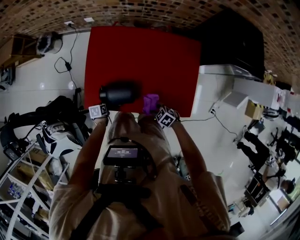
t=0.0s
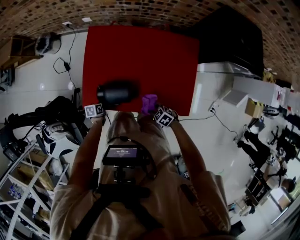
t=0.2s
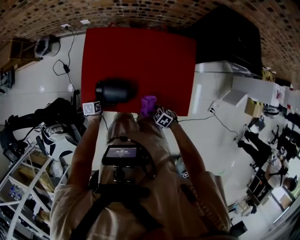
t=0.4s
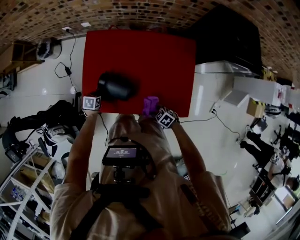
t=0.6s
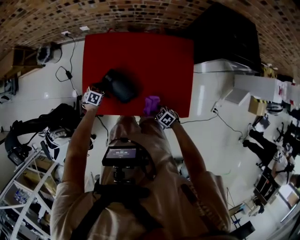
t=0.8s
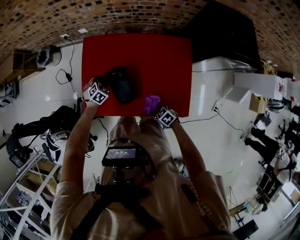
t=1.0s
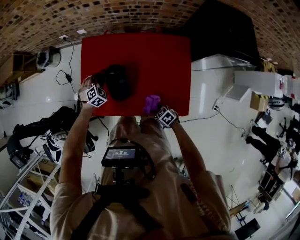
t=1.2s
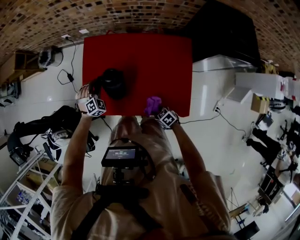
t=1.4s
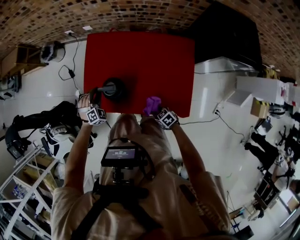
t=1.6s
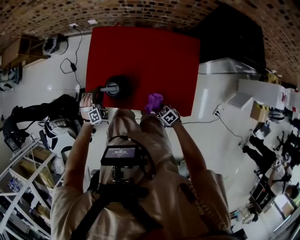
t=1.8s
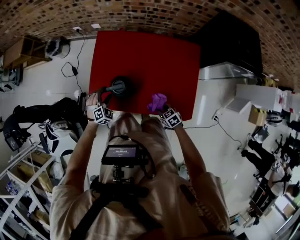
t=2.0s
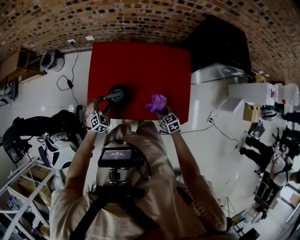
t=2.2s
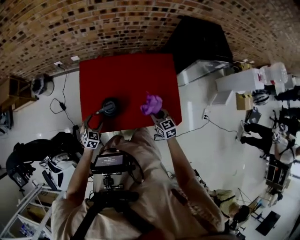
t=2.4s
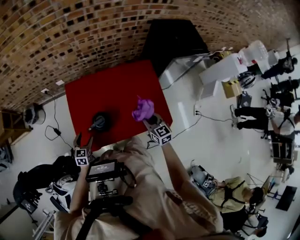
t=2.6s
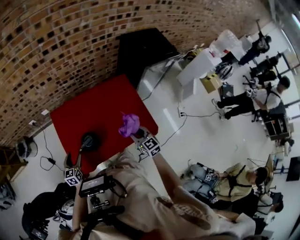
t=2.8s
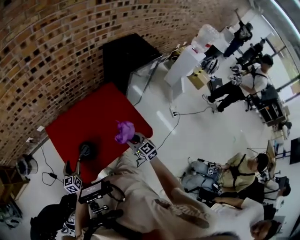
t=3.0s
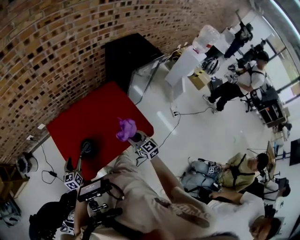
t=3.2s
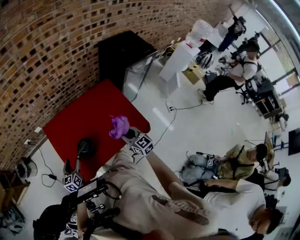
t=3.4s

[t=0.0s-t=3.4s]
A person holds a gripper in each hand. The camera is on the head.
t=0.0s to t=1.6s: The left gripper is displaced upward by about 15 cm, and rotates around the line of its fingers by approximately 90 degrees, clockwise from behind.
t=1.6s to t=3.4s: The left gripper is displaced upward by some 10 cm, rolls counterclockwise, seen from behind, by roughly 60 degrees, and opens its fingers, while the right gripper is displaced upward by some 30 cm, and tilts its fingers roughly 40 degrees upward.

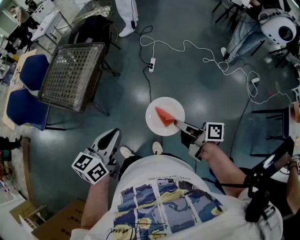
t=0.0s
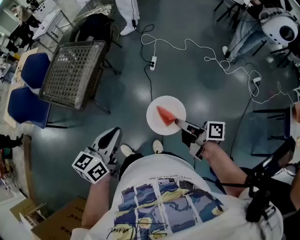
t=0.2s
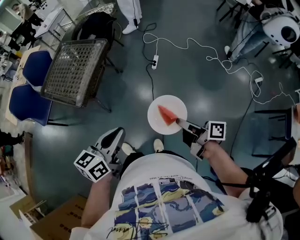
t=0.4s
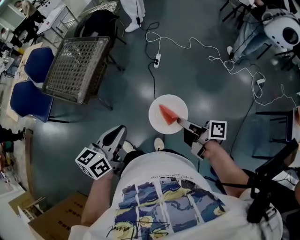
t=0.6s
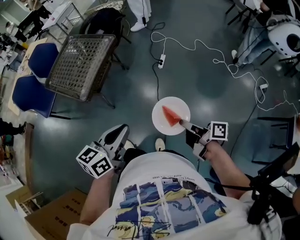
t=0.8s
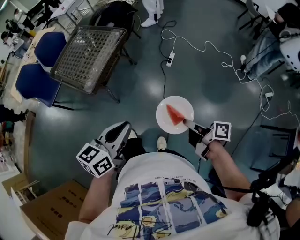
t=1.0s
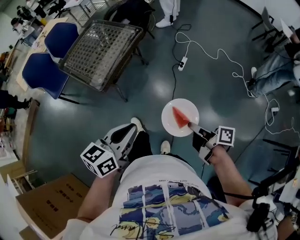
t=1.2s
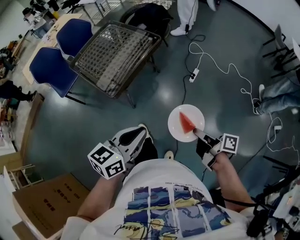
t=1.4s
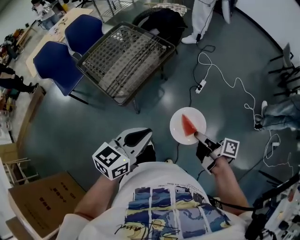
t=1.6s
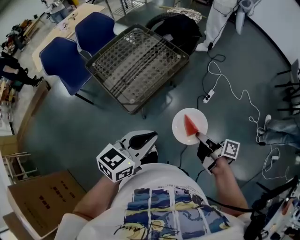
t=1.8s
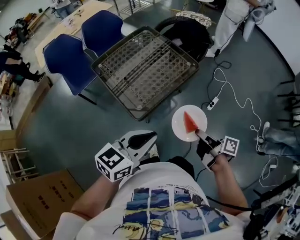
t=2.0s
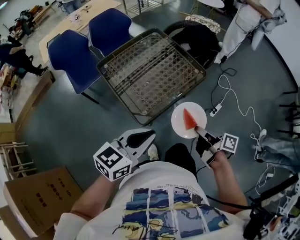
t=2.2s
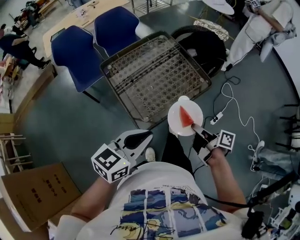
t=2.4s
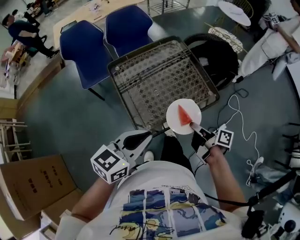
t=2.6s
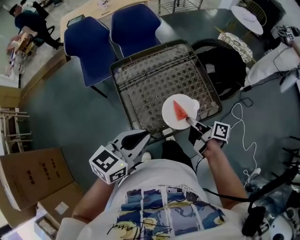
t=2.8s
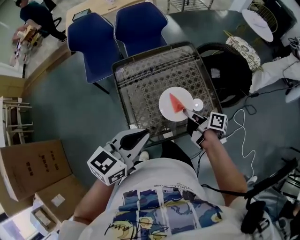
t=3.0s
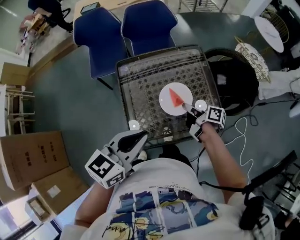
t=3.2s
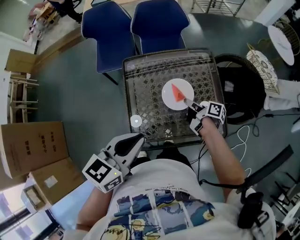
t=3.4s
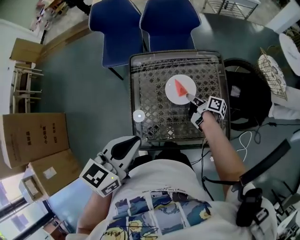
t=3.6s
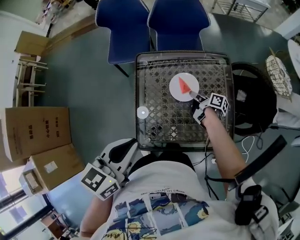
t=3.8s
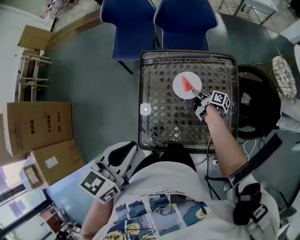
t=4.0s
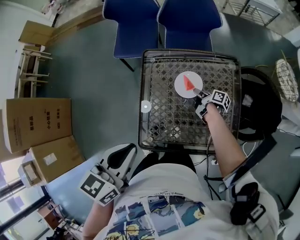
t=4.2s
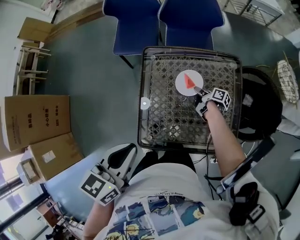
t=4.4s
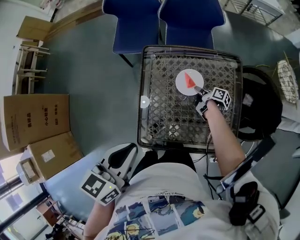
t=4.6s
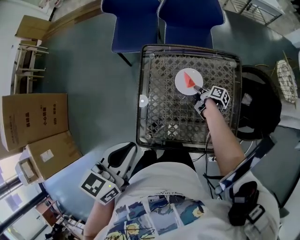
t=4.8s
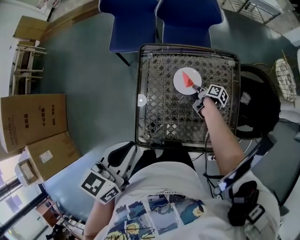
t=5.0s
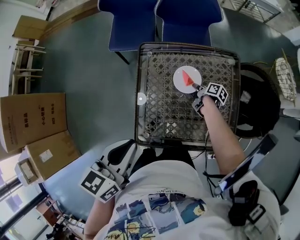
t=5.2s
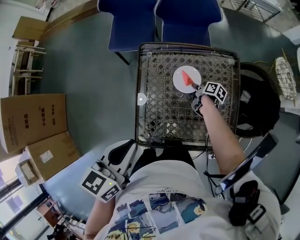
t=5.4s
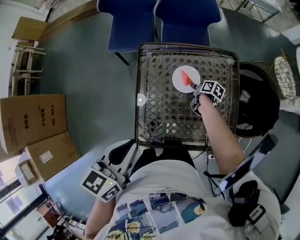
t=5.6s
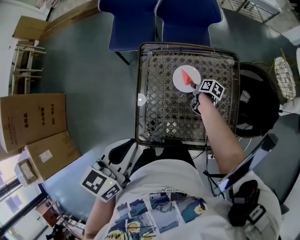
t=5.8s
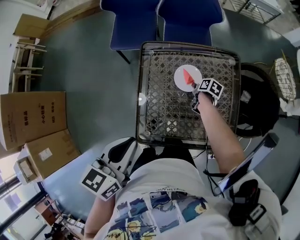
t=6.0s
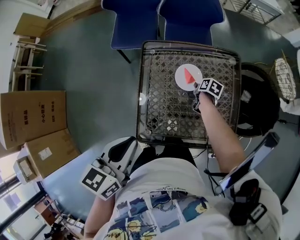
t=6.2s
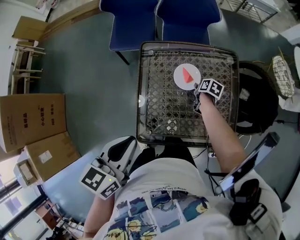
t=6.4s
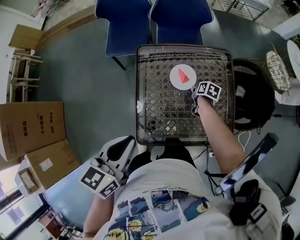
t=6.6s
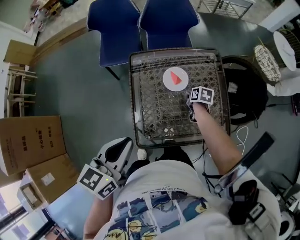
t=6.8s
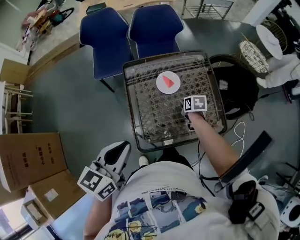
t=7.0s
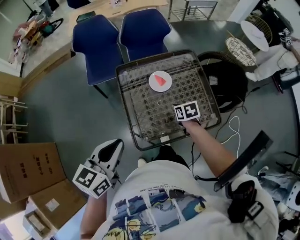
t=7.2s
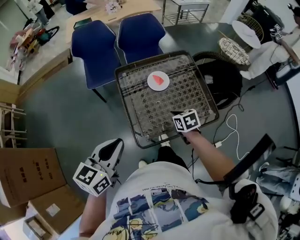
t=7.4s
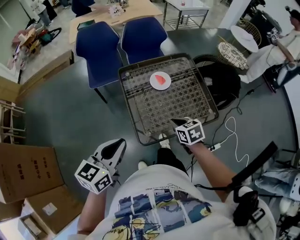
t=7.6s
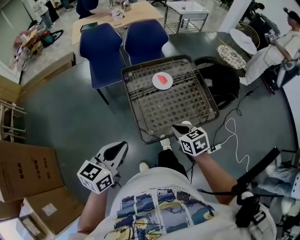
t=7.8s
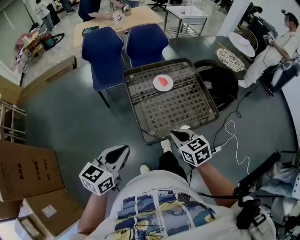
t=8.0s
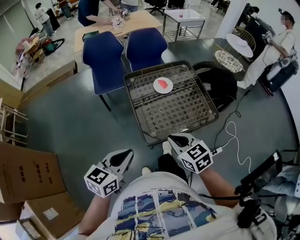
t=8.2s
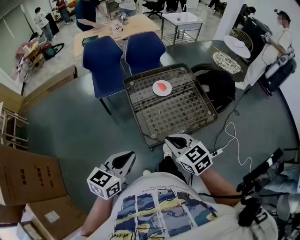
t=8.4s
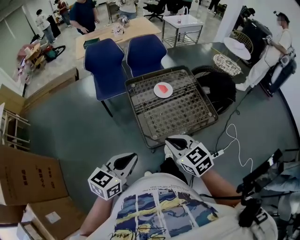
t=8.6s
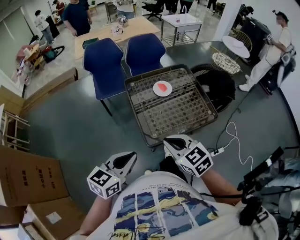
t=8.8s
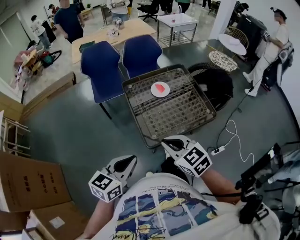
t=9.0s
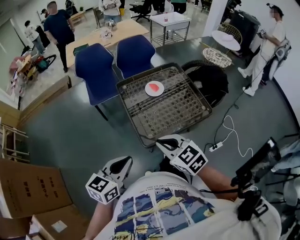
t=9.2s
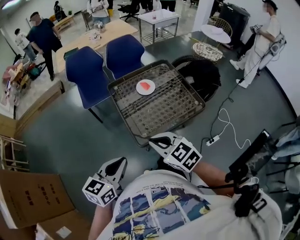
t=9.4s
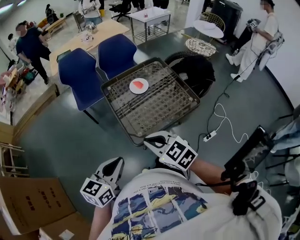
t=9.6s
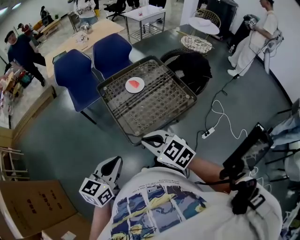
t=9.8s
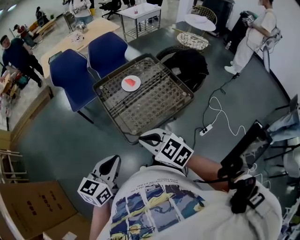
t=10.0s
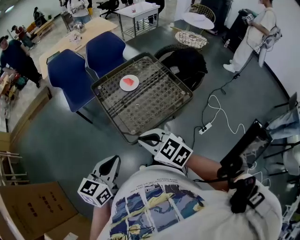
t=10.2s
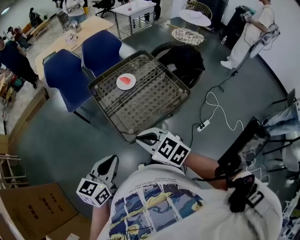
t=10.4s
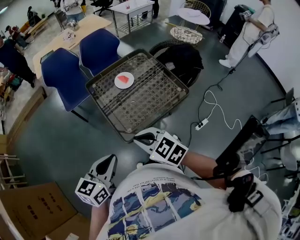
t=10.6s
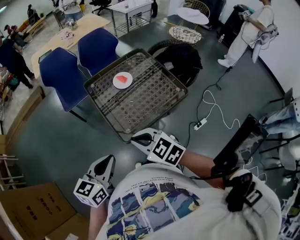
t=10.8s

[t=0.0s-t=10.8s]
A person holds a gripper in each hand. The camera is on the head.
t=0.0s to t=1.6s: The grippers both shift forward and to the left by some 20 cm.
t=1.6s to t=3.0s: The two grippers travel together, roughly 50 cm. The left gripper swivels roughly 30 degrees. The right gripper swivels approximately 40 degrees.
t=3.0s to t=4.6s: The left gripper moves to the left, some 5 cm, and rotates about 40 degrees; the right gripper goes some 30 cm forward and downward, and rotates some 20 degrees.
t=4.6s to t=6.2s: The right gripper turns by some 40 degrees, and opens.
t=6.2s to t=7.8s: The left gripper moves backward and to the left, some 20 cm, and swivels roughly 30 degrees; the right gripper is displaced backward, upward and to the left by approximately 50 cm, swivels some 40 degrees, and closes up.
t=7.8s to t=9.2s: The left gripper moves backward, about 5 cm. Meanwhile the right gripper goes about 15 cm upward, backward and to the left, and changes its angle by roughly 20 degrees.
t=9.2s to t=10.8s: The grippers make only small movements.

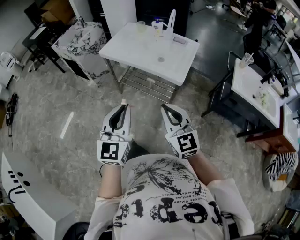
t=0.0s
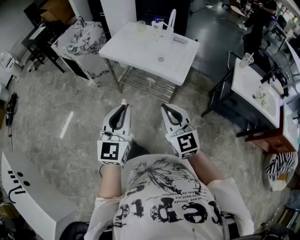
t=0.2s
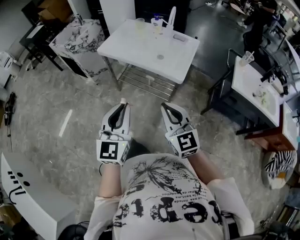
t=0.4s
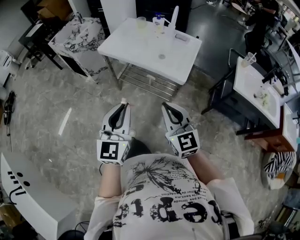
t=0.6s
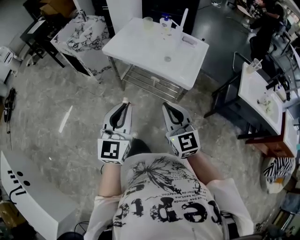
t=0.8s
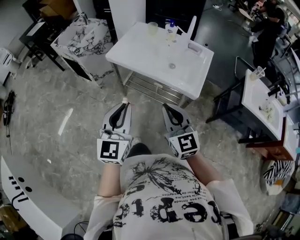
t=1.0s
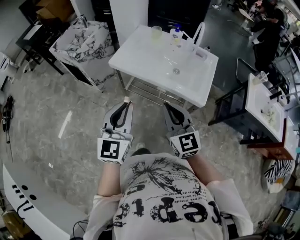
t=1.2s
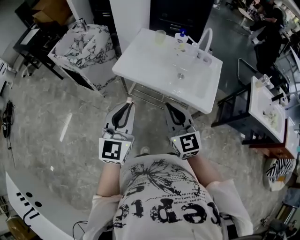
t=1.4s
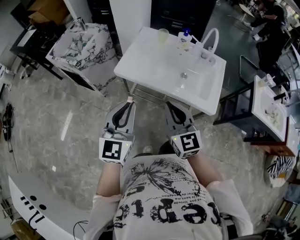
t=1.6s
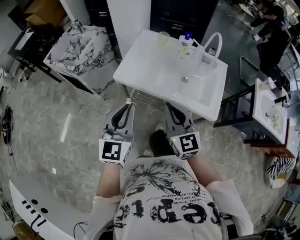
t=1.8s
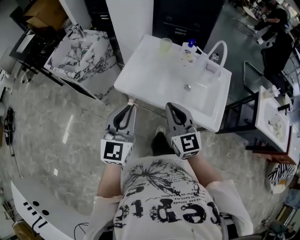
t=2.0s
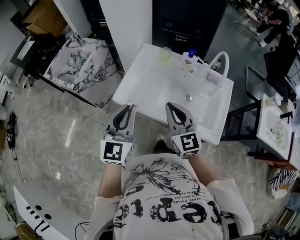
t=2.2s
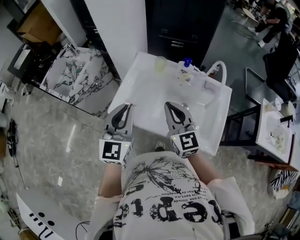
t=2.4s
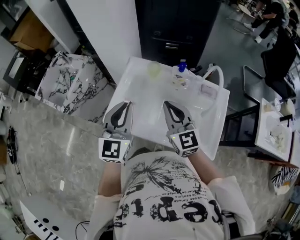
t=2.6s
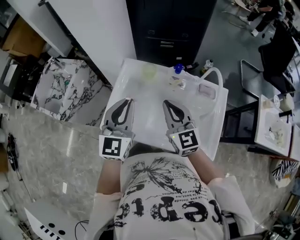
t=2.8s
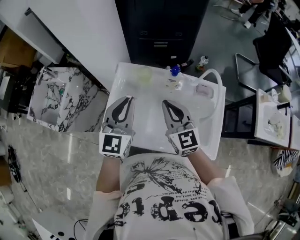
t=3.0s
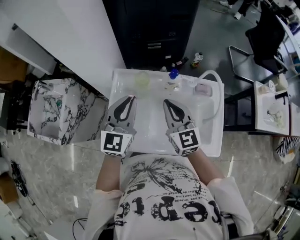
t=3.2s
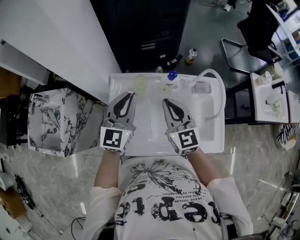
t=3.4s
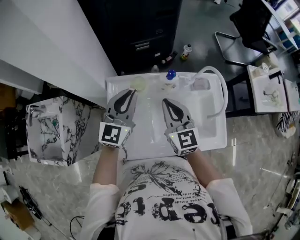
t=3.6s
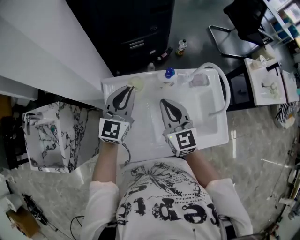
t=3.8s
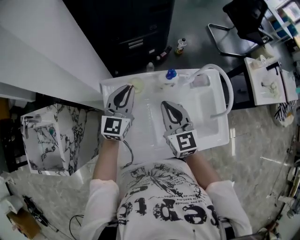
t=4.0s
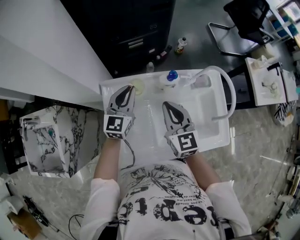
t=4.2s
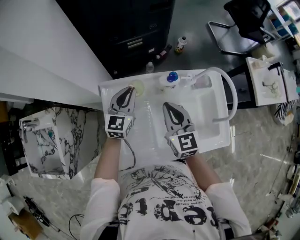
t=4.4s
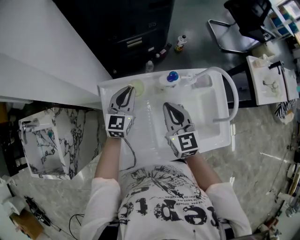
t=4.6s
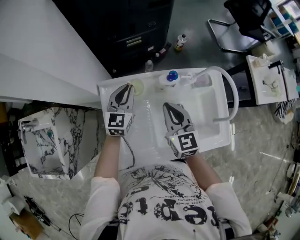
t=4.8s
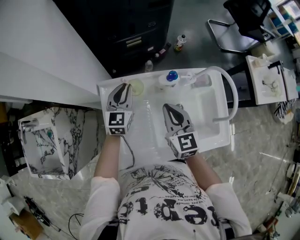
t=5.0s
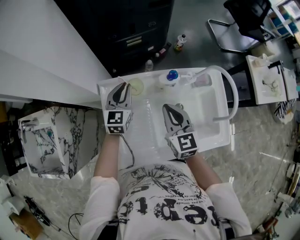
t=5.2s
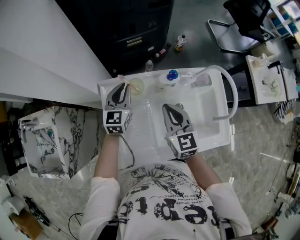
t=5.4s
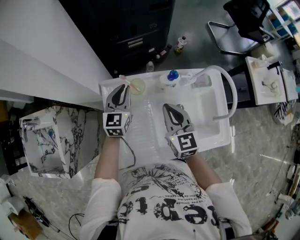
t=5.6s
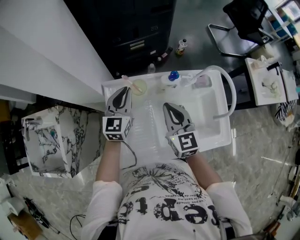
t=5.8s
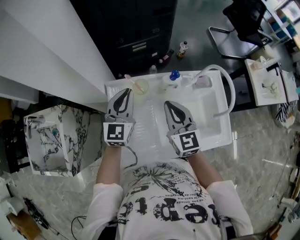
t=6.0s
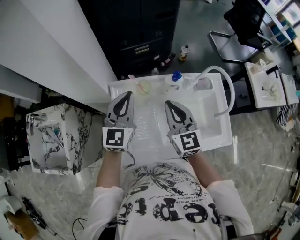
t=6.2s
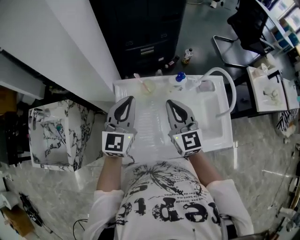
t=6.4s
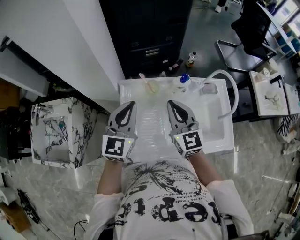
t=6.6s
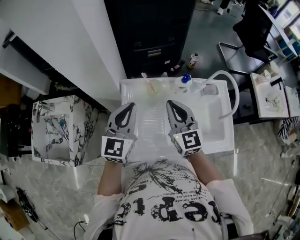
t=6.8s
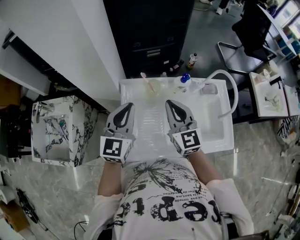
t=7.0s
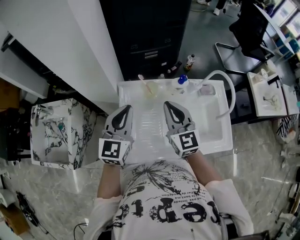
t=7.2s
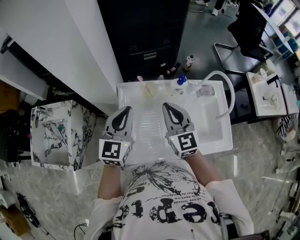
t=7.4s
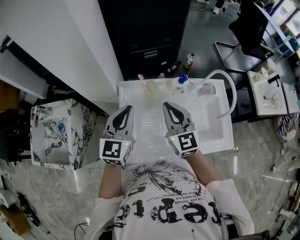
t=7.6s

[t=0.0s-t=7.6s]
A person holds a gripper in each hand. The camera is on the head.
t=0.0s to t=1.6s: Both grippers travel together forward and to the left, roughly 35 cm.
t=1.6s to t=3.0s: The grippers both shift forward by some 40 cm.
t=3.0s to t=4.6s: The right gripper is displaced forward and downward by approximately 10 cm, and swivels roughly 30 degrees; the left gripper travels forward and downward by about 25 cm, and changes its angle by roughly 20 degrees.
t=4.6s to t=6.0s: The left gripper moves upward, about 10 cm.
t=6.0s to t=7.6s: The right gripper moves to the left, roughly 5 cm. Meanwhile the left gripper goes roughly 10 cm backward, upward and to the left.

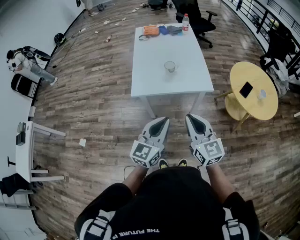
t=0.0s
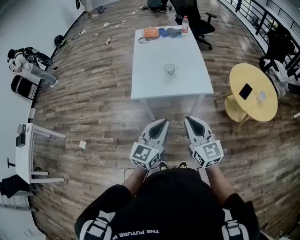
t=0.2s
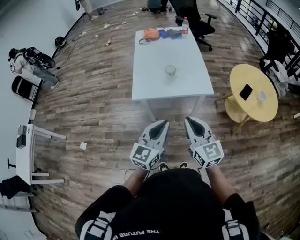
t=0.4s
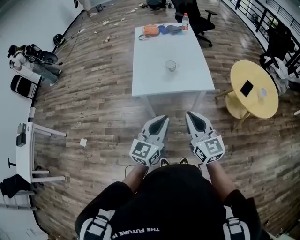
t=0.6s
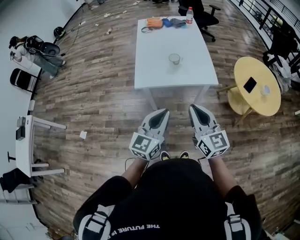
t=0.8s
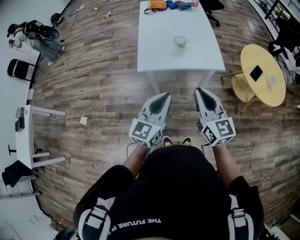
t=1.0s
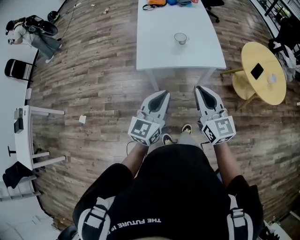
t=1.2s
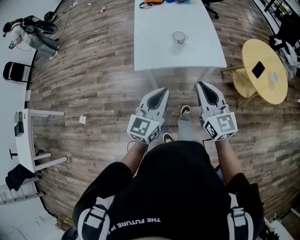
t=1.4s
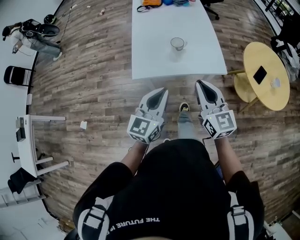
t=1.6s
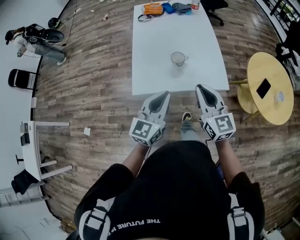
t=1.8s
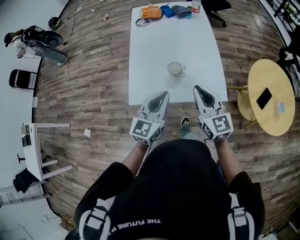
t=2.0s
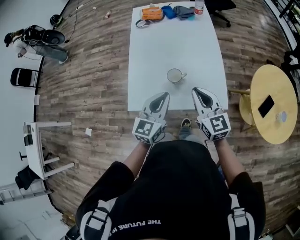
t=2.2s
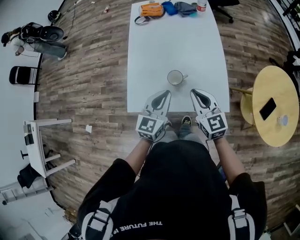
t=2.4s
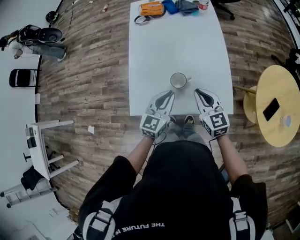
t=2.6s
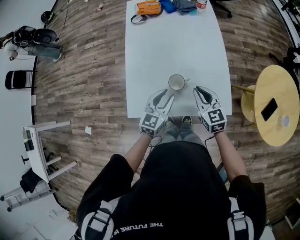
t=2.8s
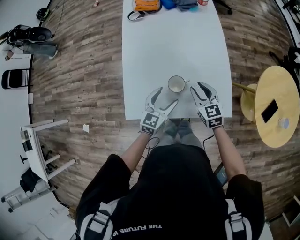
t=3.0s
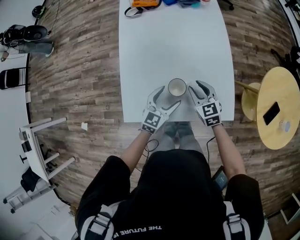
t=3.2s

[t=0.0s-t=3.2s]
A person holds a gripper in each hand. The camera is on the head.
t=0.0s to t=1.6s: The left gripper is displaced forward and to the left by about 15 cm; the right gripper heads forward, covering some 15 cm.
t=1.6s to t=3.2s: The grippers both shift forward and downward by some 40 cm. The right gripper changes its angle by roughly 30 degrees, and opens its fingers; the left gripper rotates roughly 20 degrees, and opens its fingers.
